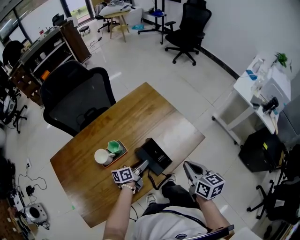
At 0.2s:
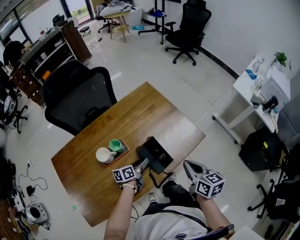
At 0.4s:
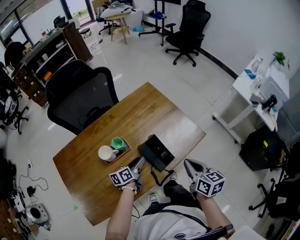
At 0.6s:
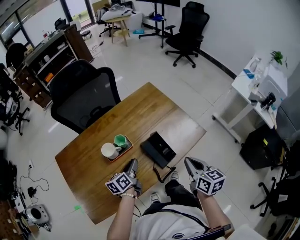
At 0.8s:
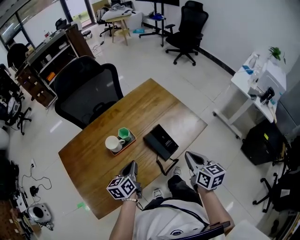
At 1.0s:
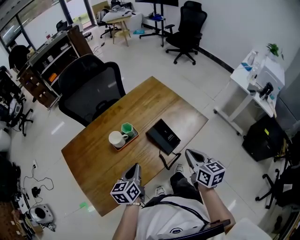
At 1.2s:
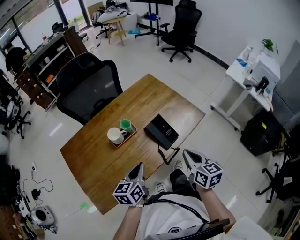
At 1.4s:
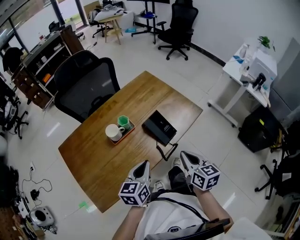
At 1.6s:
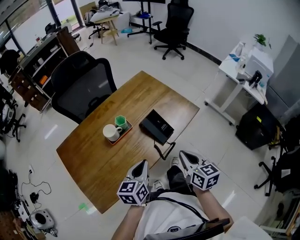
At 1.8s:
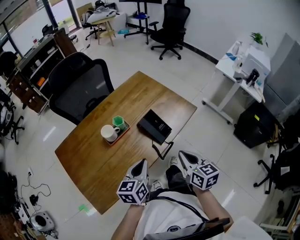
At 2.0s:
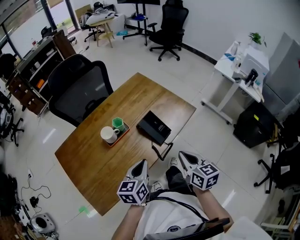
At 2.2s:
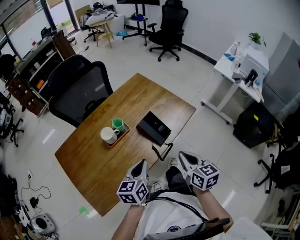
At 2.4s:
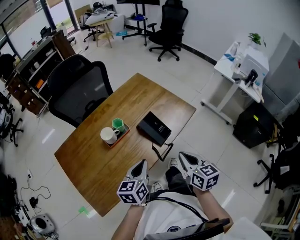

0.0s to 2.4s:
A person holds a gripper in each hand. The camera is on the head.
0.0s to 1.2s: The right gripper is displaced backward and to the left by roughly 10 cm. The left gripper goes roughly 25 cm upward, backward and to the left, turns by about 30 degrees, and closes its fingers.
1.2s to 2.4s: The grippers move only a little.

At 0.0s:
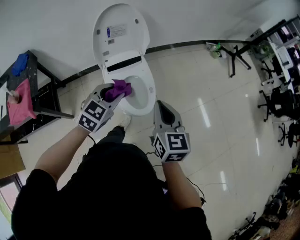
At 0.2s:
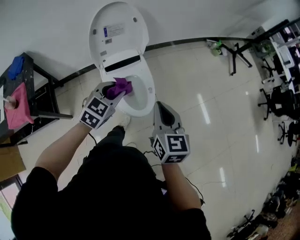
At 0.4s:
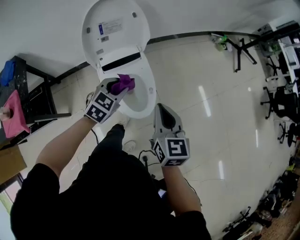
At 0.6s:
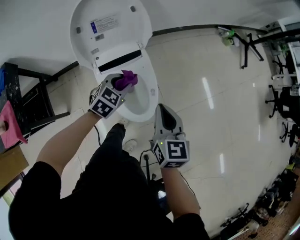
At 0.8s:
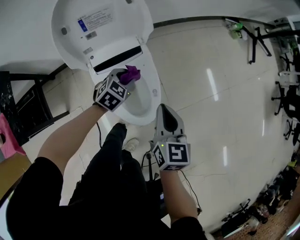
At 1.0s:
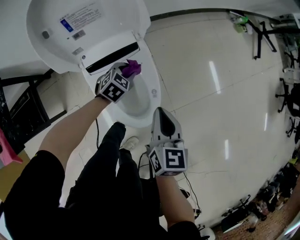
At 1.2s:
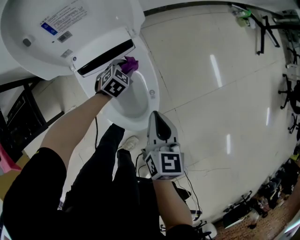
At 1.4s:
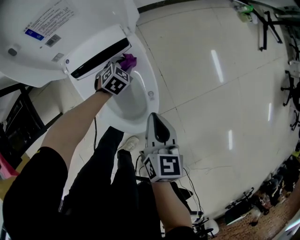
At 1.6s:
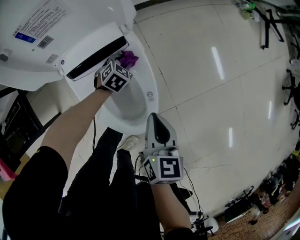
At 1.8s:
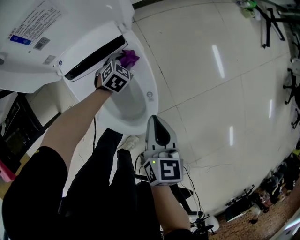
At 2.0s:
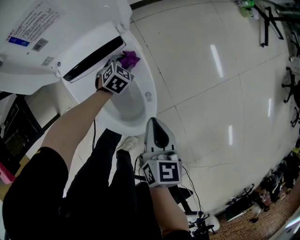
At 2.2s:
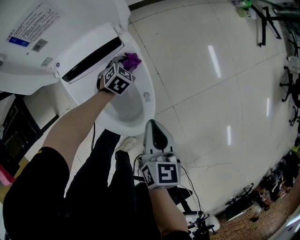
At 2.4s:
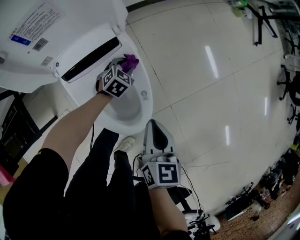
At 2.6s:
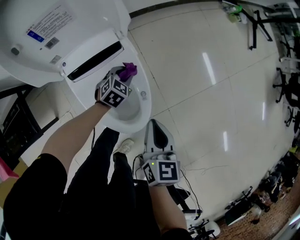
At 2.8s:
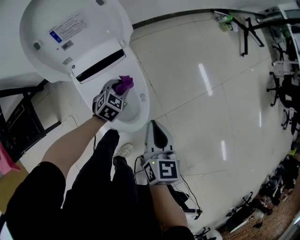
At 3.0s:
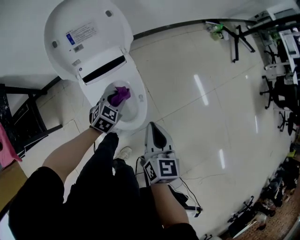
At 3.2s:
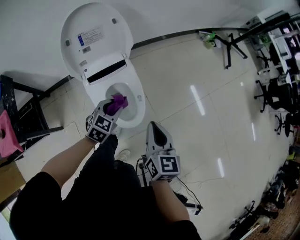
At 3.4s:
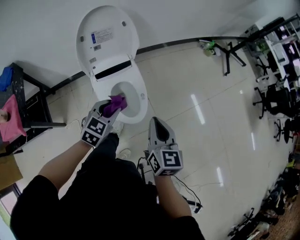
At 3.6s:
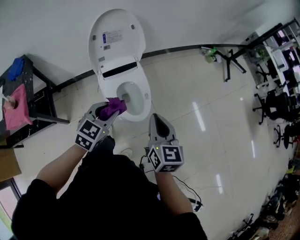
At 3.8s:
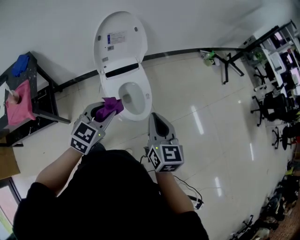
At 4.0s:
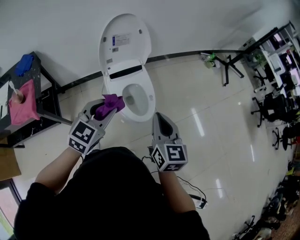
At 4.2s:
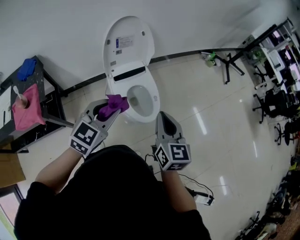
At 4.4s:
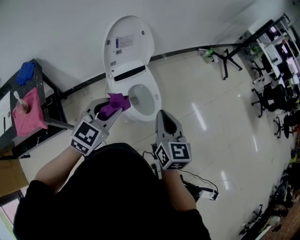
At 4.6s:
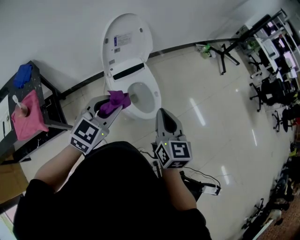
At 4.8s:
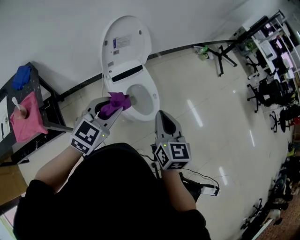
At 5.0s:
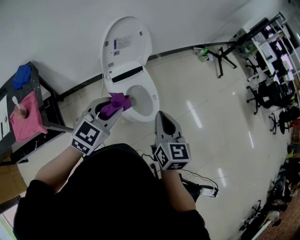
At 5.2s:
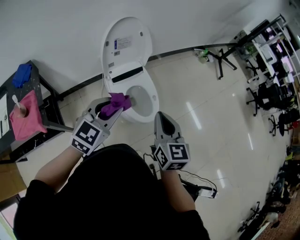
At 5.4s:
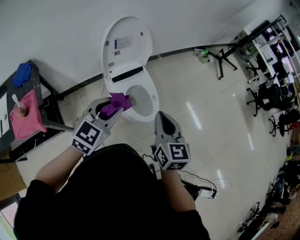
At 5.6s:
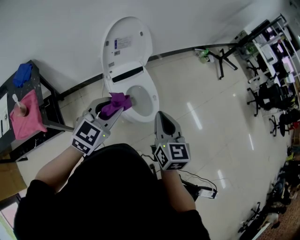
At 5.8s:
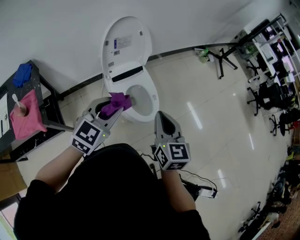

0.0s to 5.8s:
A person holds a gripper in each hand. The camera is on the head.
0.0s to 1.4s: The right gripper moves downward and forward, about 40 cm, and changes its angle by approximately 20 degrees. The left gripper is displaced downward and forward by about 60 cm, and swivels approximately 30 degrees.
1.4s to 2.8s: The right gripper shifts approximately 10 cm upward, while the left gripper moves upward and backward, some 15 cm.
2.8s to 4.4s: The left gripper travels upward and backward by roughly 60 cm, and turns by about 30 degrees. The right gripper travels upward and backward by roughly 35 cm.
4.4s to 5.8s: Both grippers stay put.

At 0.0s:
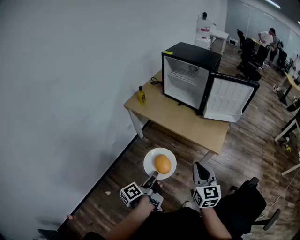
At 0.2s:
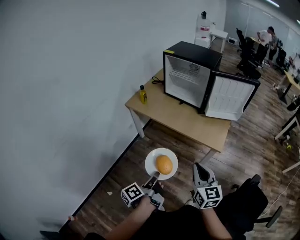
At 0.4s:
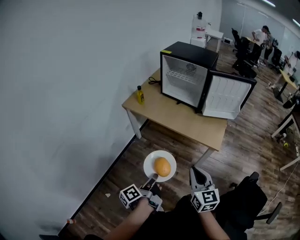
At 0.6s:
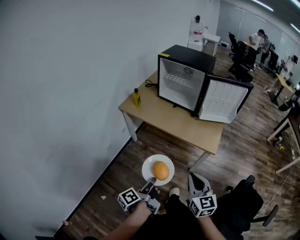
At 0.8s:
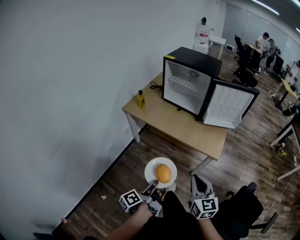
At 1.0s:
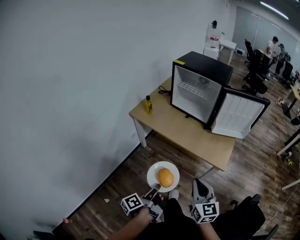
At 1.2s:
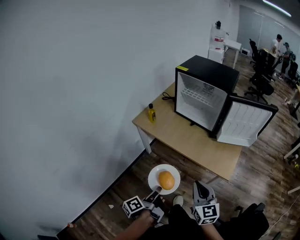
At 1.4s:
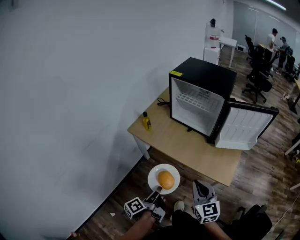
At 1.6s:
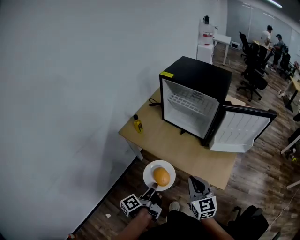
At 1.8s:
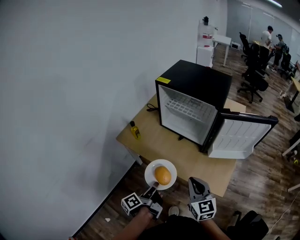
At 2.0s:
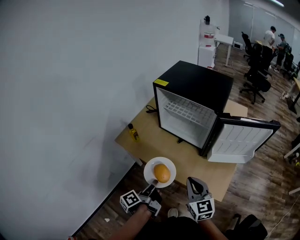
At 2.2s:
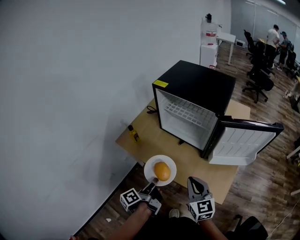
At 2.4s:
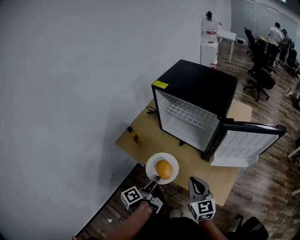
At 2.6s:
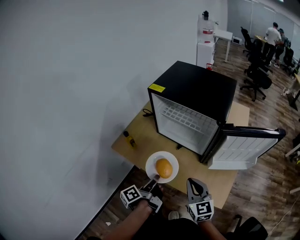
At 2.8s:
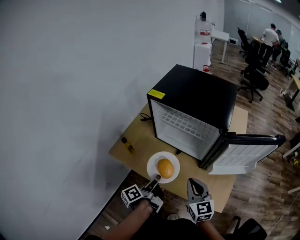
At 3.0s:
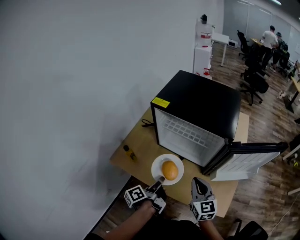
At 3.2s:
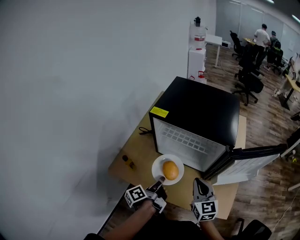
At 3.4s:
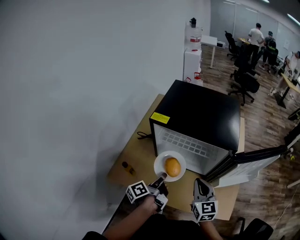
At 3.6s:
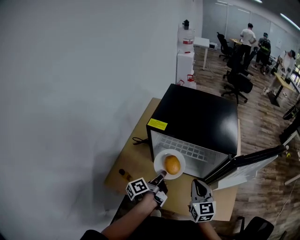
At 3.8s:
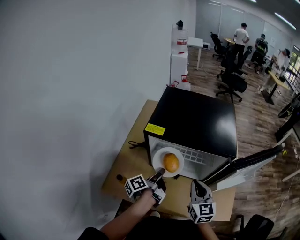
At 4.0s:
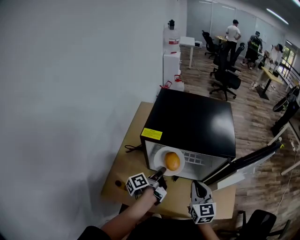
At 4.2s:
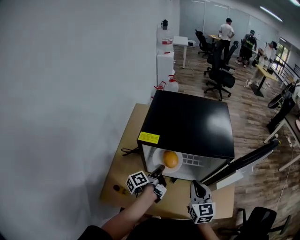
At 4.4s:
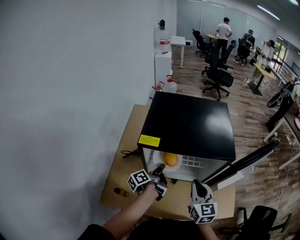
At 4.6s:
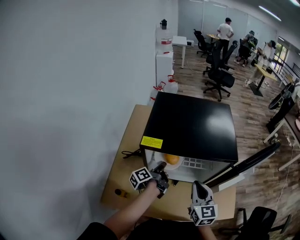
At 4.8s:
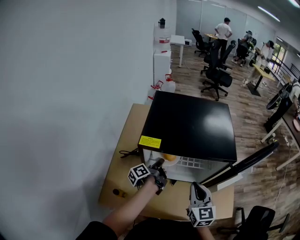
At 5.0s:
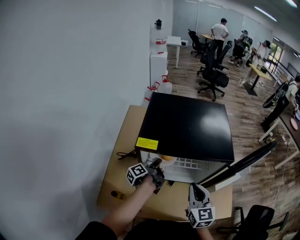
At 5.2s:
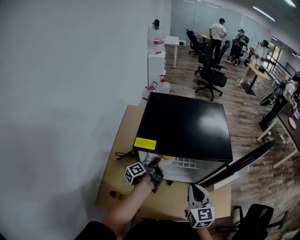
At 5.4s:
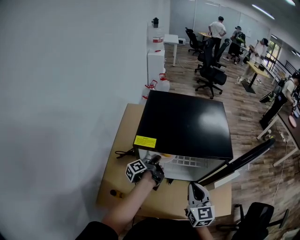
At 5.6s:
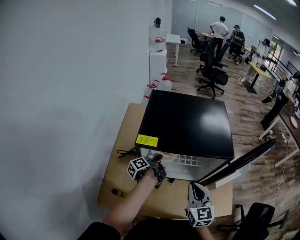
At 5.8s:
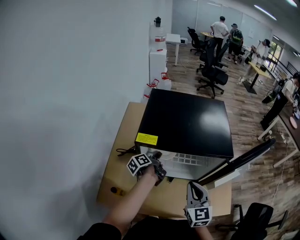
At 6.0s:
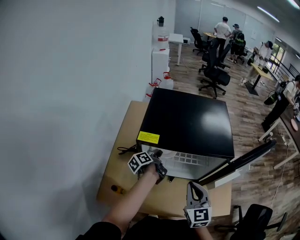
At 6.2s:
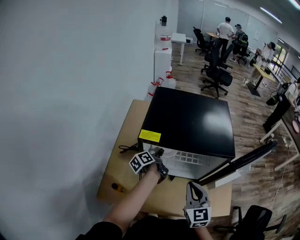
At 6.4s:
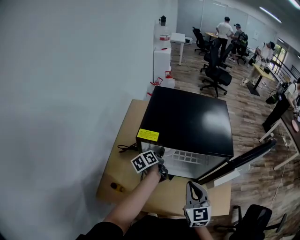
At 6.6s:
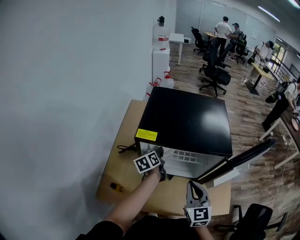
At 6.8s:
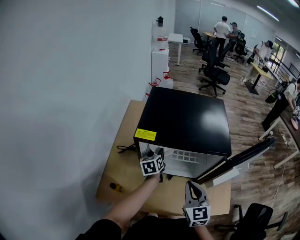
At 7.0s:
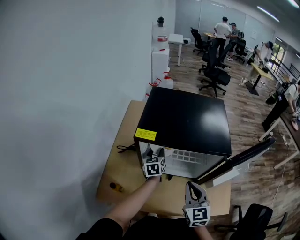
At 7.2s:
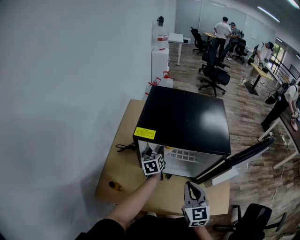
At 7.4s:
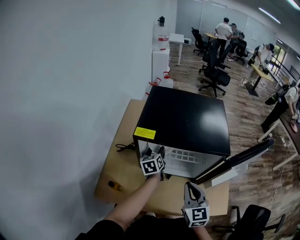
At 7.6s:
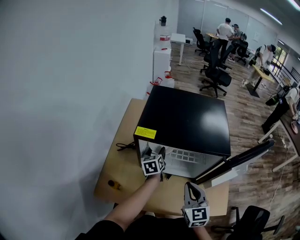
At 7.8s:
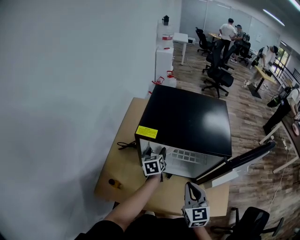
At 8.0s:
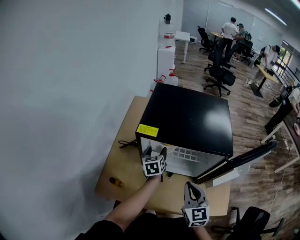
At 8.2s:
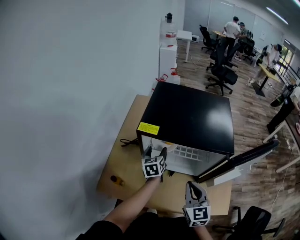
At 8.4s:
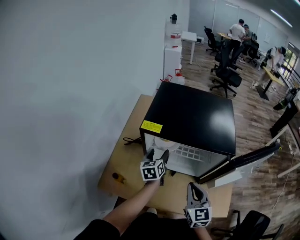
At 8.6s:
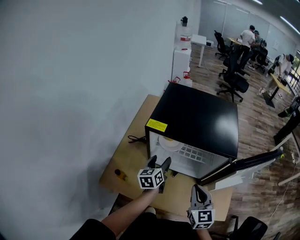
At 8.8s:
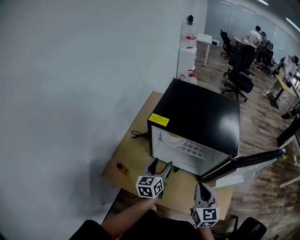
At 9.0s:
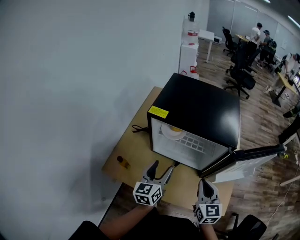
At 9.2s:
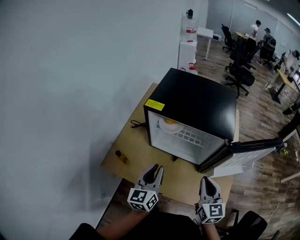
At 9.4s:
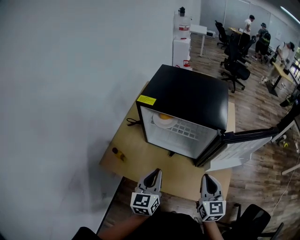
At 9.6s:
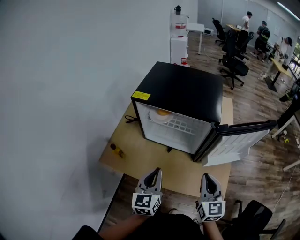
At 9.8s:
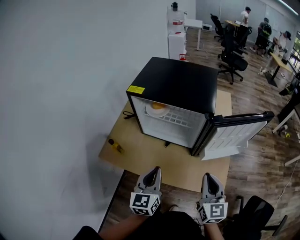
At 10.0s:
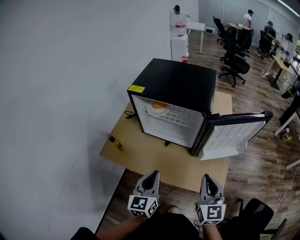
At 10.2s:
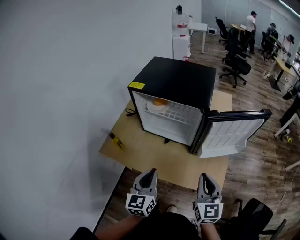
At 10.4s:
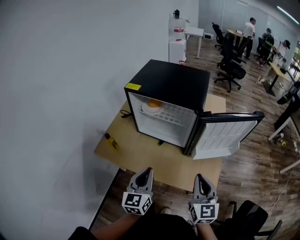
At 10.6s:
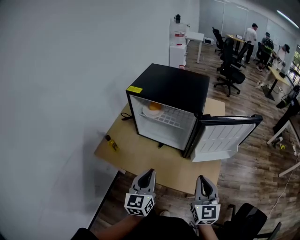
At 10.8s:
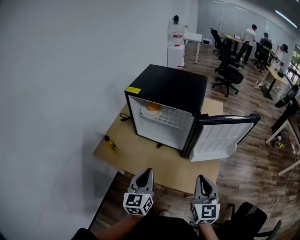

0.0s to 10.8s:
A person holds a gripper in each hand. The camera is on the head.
0.0s to 1.6s: Both grippers move forward, approximately 20 cm.
1.6s to 3.0s: Both grippers travel together forward, about 25 cm.
3.0s to 4.6s: The right gripper goes approximately 10 cm forward and to the left, and rotates roughly 20 degrees, while the left gripper shifts roughly 25 cm forward.
4.6s to 6.2s: The grippers stay close to where they were, moving slightly.
6.2s to 7.8s: The left gripper rotates around the line of its fingers by approximately 50 degrees, clockwise from behind, and opens.
7.8s to 9.2s: The right gripper goes roughly 10 cm to the right and backward. The left gripper travels backward and upward by some 30 cm, rotates some 20 degrees, and closes up.
9.2s to 10.8s: The two grippers go about 15 cm backward and to the right.

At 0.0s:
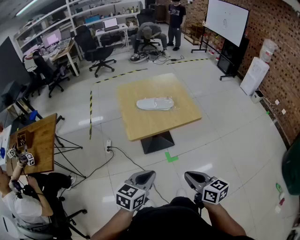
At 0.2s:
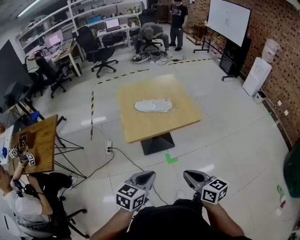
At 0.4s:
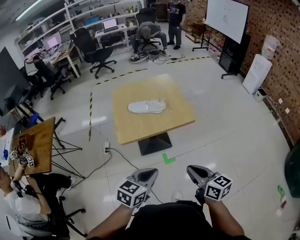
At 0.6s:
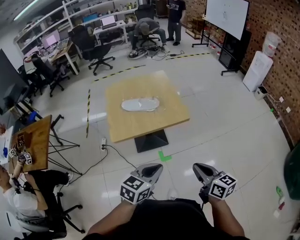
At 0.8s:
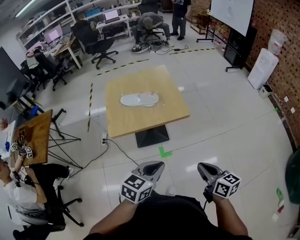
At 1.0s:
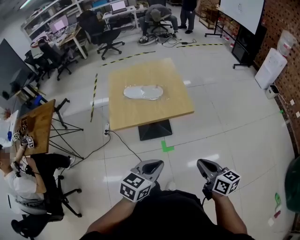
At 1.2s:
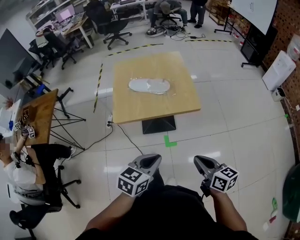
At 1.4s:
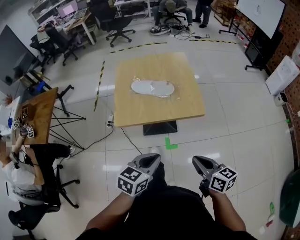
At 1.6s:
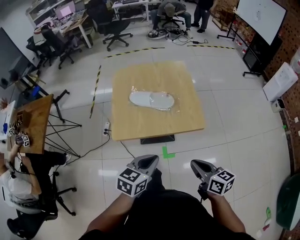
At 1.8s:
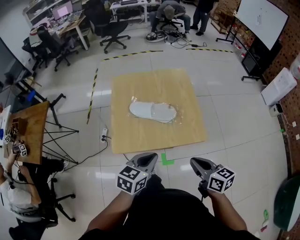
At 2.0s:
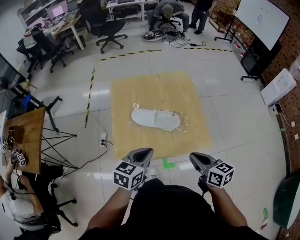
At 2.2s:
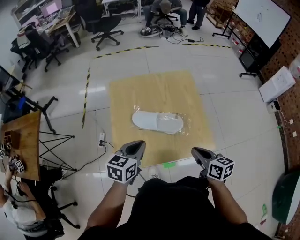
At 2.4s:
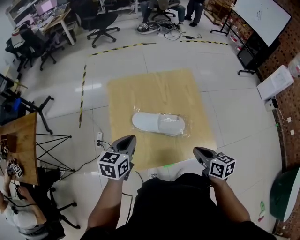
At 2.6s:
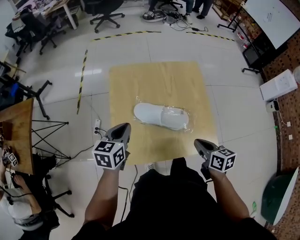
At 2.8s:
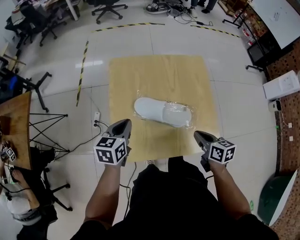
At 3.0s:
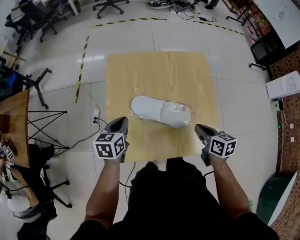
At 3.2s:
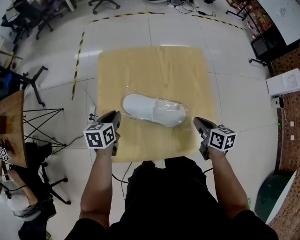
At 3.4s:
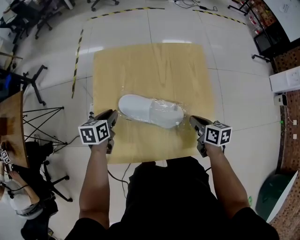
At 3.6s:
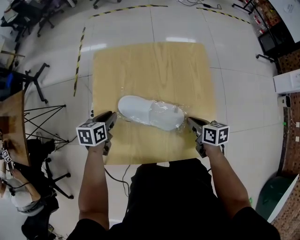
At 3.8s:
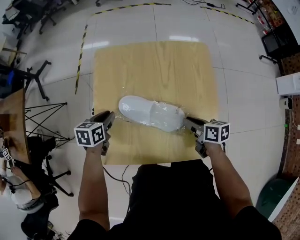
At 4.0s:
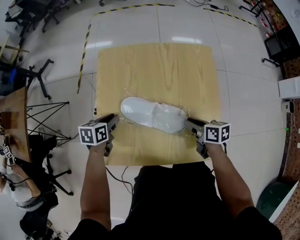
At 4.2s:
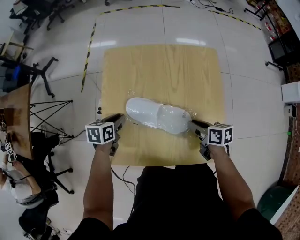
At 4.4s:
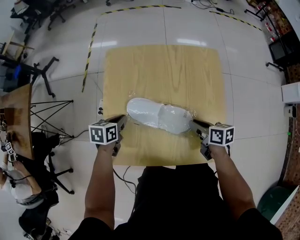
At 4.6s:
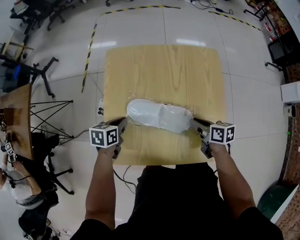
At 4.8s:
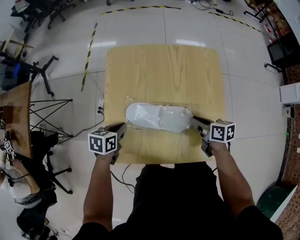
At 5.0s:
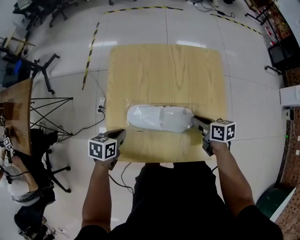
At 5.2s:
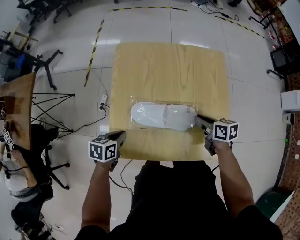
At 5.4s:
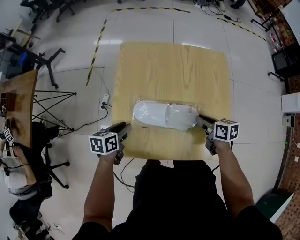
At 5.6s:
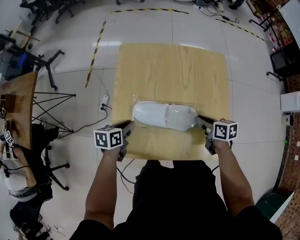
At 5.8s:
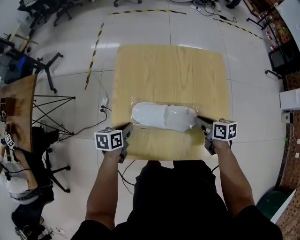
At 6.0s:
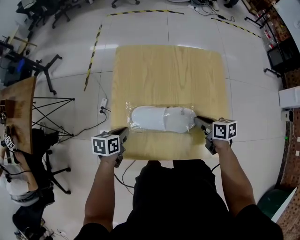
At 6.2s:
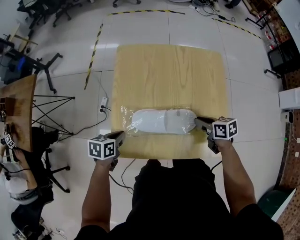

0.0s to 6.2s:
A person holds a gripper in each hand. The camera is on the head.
0.0s to 1.6s: The two grippers go about 25 cm forward and to the right.
1.6s to 3.2s: The right gripper shifts about 35 cm forward; the left gripper shifts some 40 cm forward, to the left and downward, and turns by roughly 30 degrees.
3.2s to 4.6s: The two grippers go about 5 cm downward.
4.6s to 6.2s: The left gripper moves forward and backward over some 10 cm, changing direction 2 times, and opens, then closes once more.
